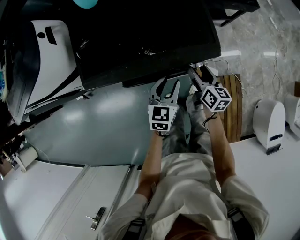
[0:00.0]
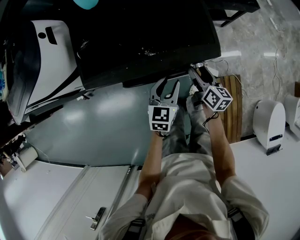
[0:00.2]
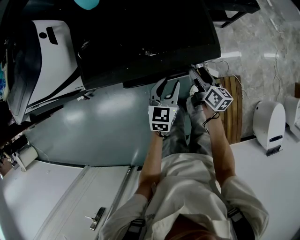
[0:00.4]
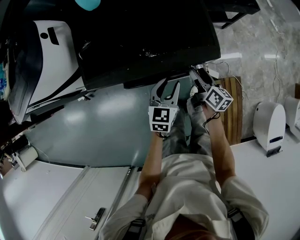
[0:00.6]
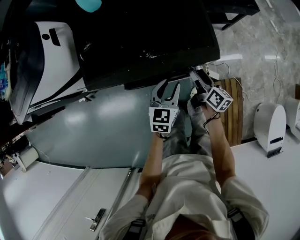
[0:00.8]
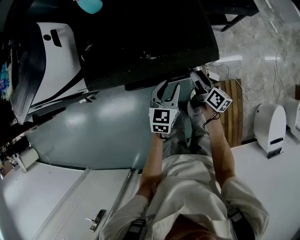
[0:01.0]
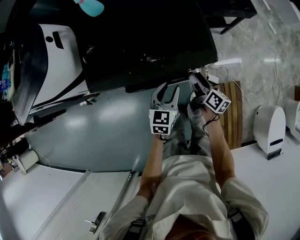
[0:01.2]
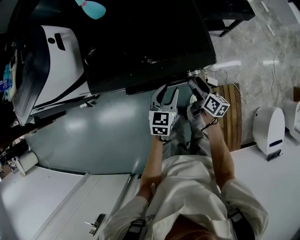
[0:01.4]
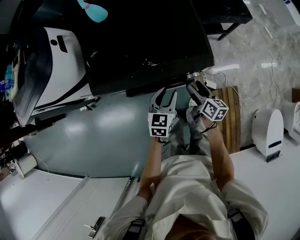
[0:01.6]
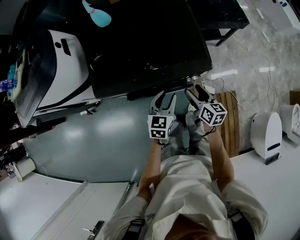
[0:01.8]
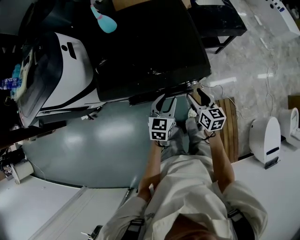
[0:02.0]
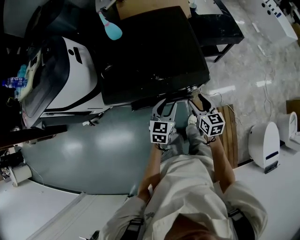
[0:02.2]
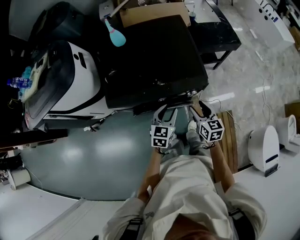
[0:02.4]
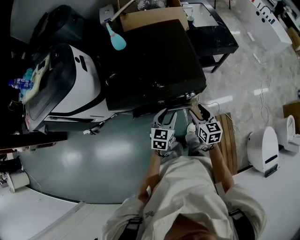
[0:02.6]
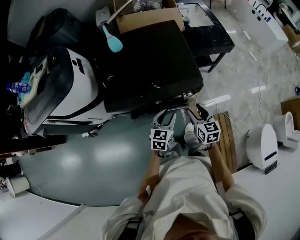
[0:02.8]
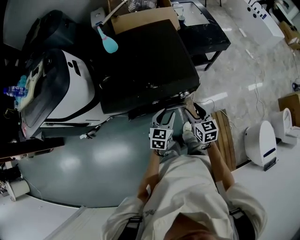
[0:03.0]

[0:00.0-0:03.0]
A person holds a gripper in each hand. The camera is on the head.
0:01.6 to 0:03.0: The right gripper heads upward, covering about 10 cm, and turns by about 40 degrees; the left gripper goes about 5 cm upward.

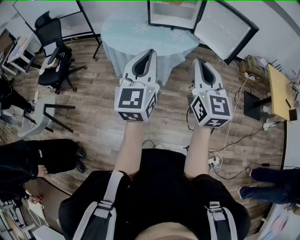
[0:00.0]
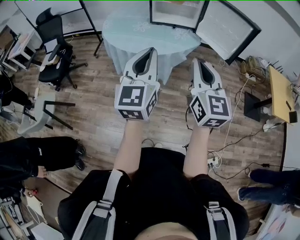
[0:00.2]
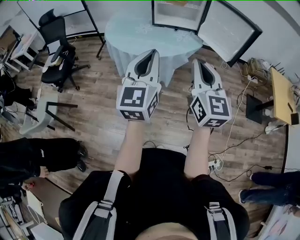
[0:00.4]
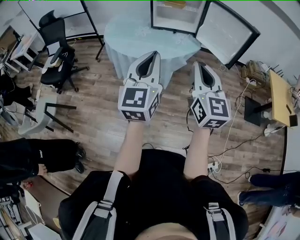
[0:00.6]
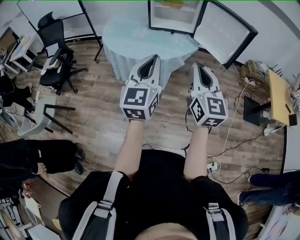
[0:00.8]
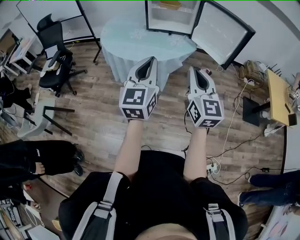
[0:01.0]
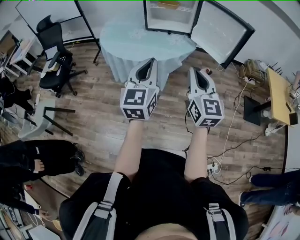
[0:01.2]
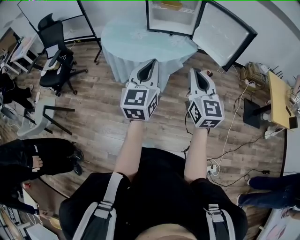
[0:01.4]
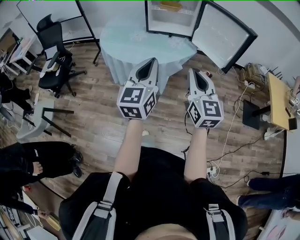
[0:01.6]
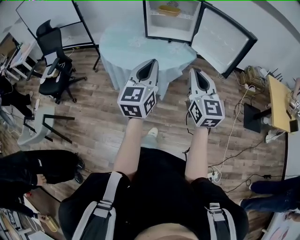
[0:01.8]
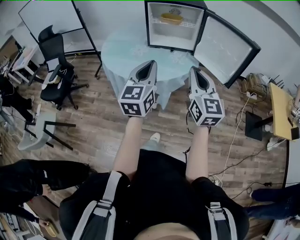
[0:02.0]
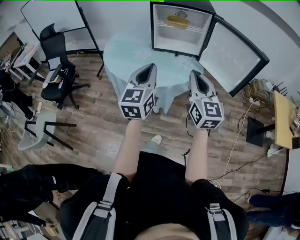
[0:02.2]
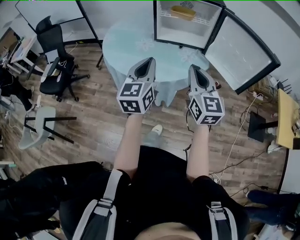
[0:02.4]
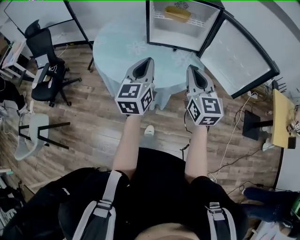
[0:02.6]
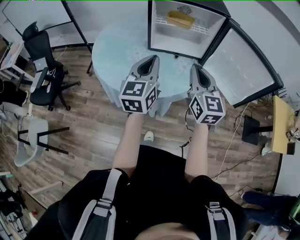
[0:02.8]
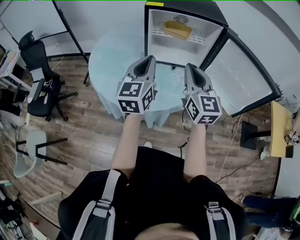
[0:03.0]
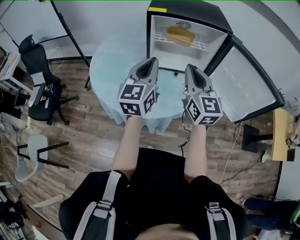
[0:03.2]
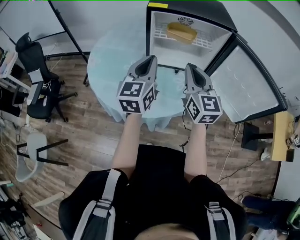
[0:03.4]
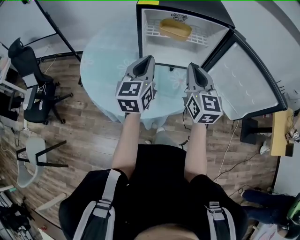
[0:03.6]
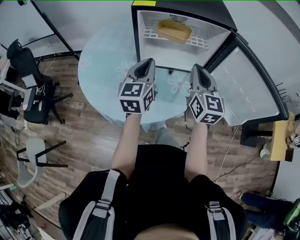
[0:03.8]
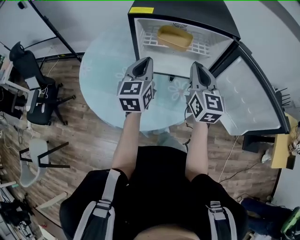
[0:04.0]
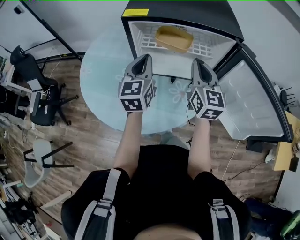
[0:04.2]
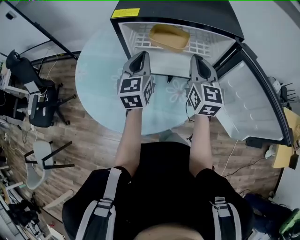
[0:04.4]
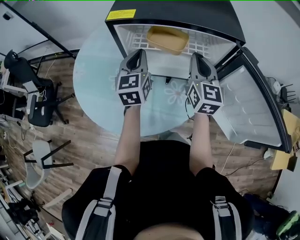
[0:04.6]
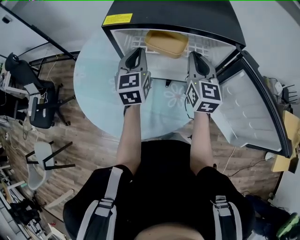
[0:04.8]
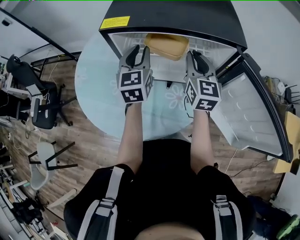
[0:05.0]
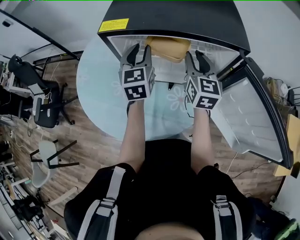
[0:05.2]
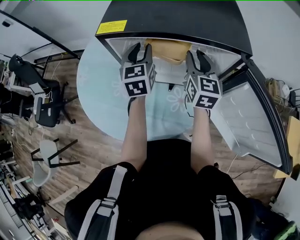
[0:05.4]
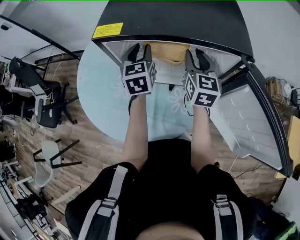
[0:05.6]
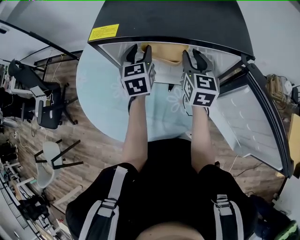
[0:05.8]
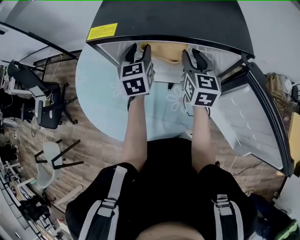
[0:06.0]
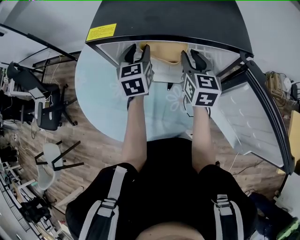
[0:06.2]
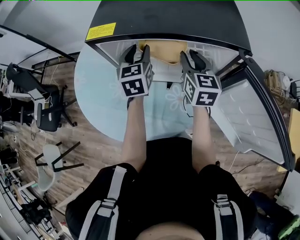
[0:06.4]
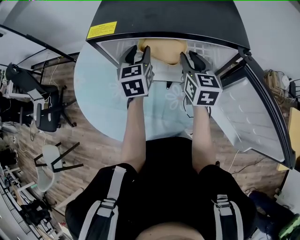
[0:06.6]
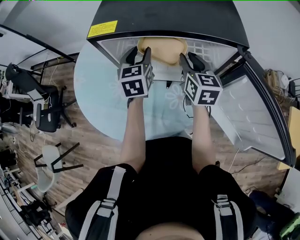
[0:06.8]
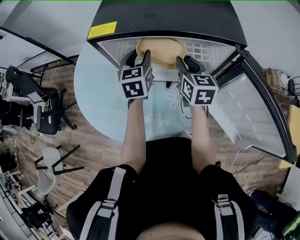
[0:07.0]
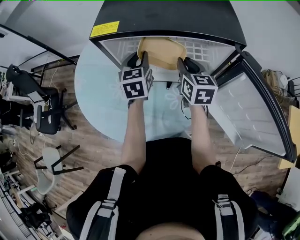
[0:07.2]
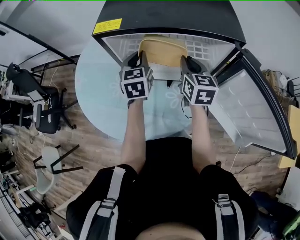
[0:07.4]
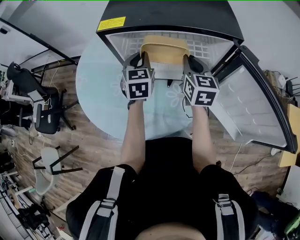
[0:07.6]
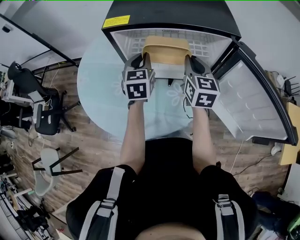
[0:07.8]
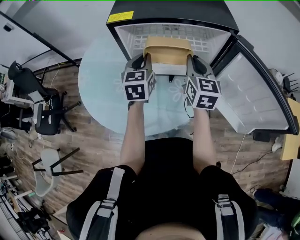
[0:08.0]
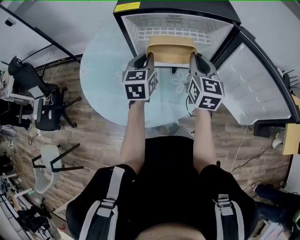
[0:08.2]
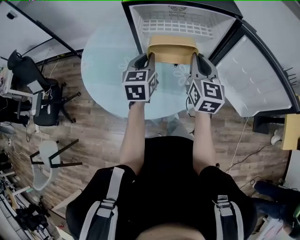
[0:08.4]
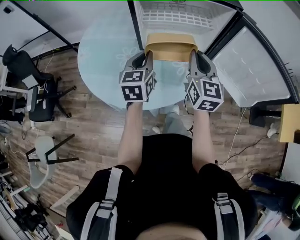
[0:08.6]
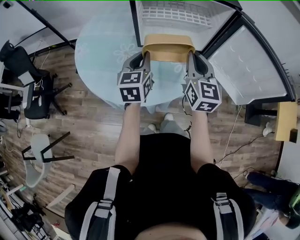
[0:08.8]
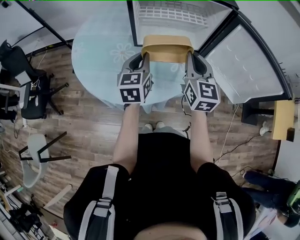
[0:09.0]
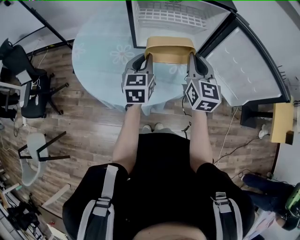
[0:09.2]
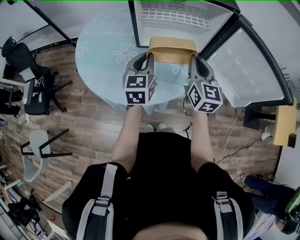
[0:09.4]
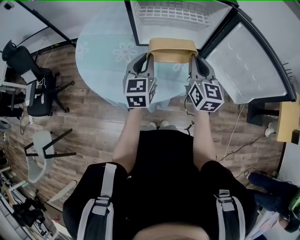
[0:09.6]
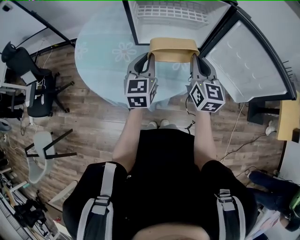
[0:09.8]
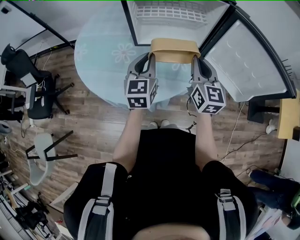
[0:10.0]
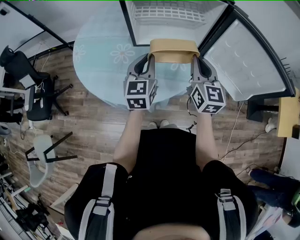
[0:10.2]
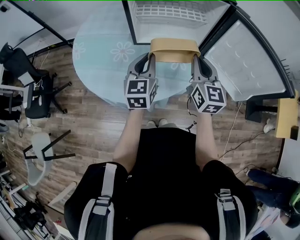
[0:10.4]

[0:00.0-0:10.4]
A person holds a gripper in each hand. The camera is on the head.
0:00.0 to 0:01.4: The left gripper shifts by some 10 cm. Meanwhile the right gripper shifts by some 5 cm.
0:01.4 to 0:03.0: Both grippers travel together forward, some 40 cm.
0:03.0 to 0:04.4: The two grippers go about 25 cm forward.
0:04.4 to 0:06.0: The right gripper goes some 10 cm forward and downward, and opens its fingers, while the left gripper is displaced forward by about 10 cm, and opens its fingers.
0:06.0 to 0:07.4: The left gripper closes; the right gripper closes.
0:07.4 to 0:09.0: Both grippers move backward, roughly 20 cm.
0:09.0 to 0:10.4: There are only small adjustments of the grippers.

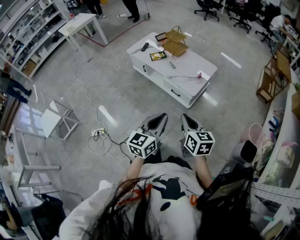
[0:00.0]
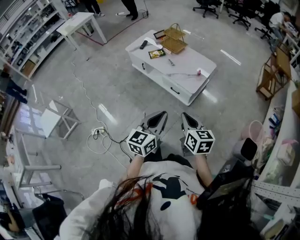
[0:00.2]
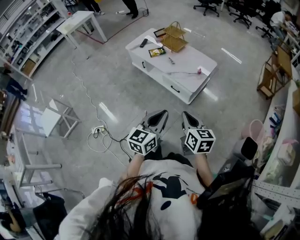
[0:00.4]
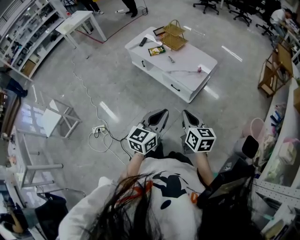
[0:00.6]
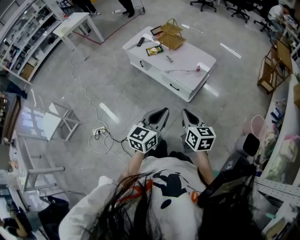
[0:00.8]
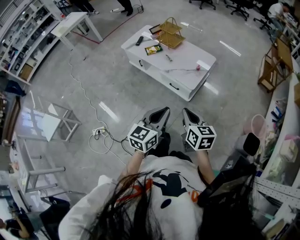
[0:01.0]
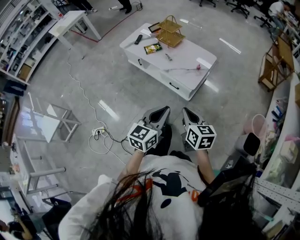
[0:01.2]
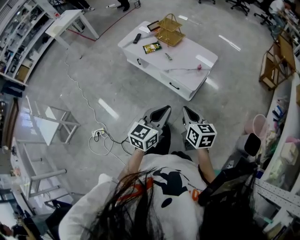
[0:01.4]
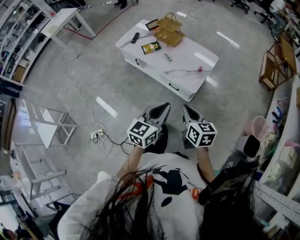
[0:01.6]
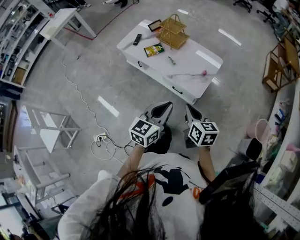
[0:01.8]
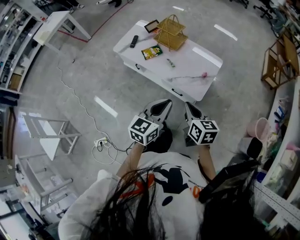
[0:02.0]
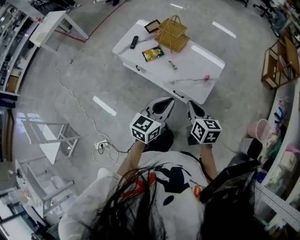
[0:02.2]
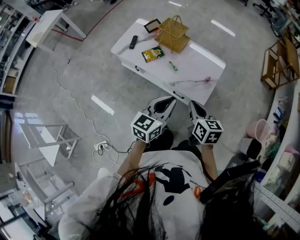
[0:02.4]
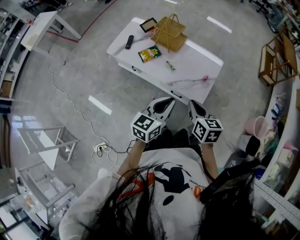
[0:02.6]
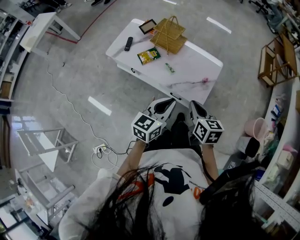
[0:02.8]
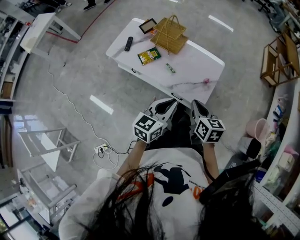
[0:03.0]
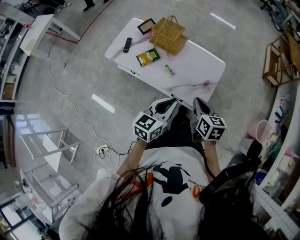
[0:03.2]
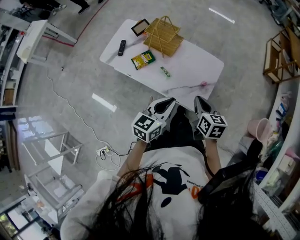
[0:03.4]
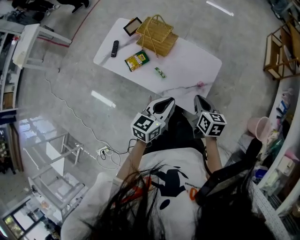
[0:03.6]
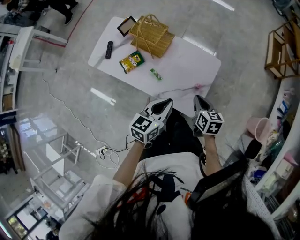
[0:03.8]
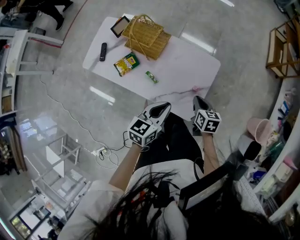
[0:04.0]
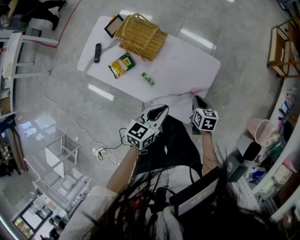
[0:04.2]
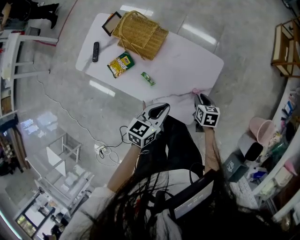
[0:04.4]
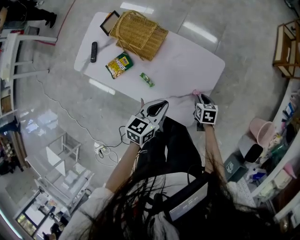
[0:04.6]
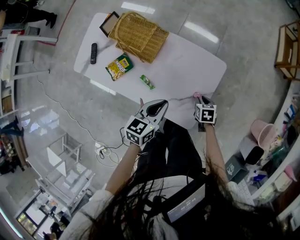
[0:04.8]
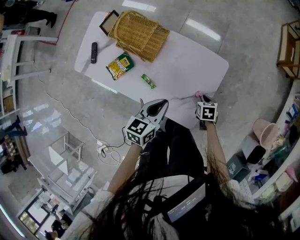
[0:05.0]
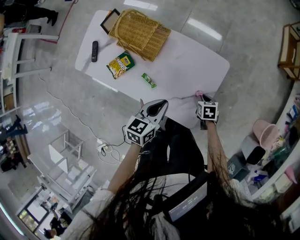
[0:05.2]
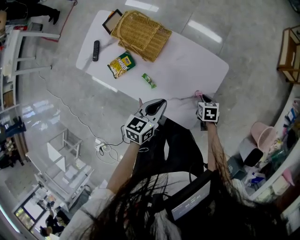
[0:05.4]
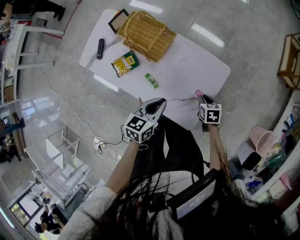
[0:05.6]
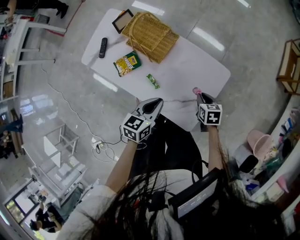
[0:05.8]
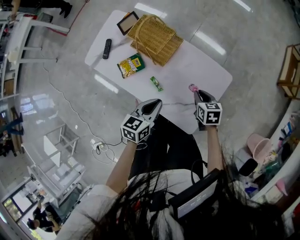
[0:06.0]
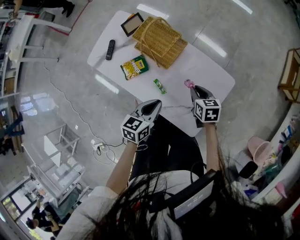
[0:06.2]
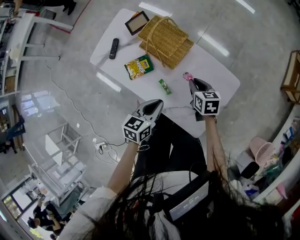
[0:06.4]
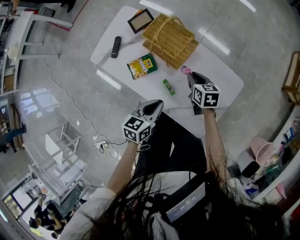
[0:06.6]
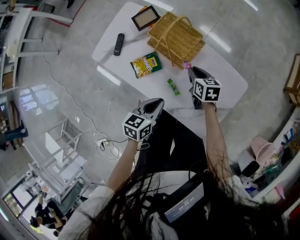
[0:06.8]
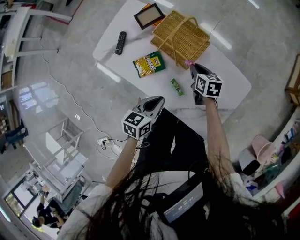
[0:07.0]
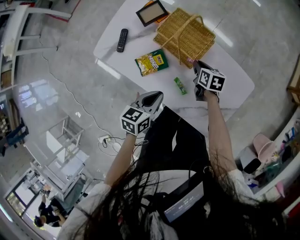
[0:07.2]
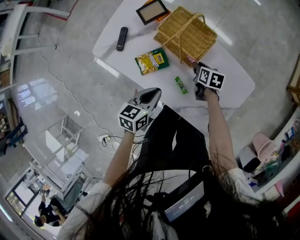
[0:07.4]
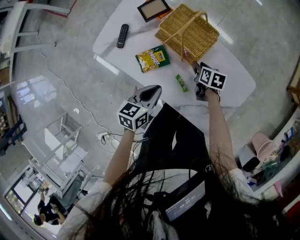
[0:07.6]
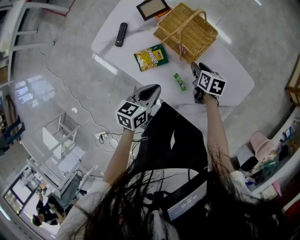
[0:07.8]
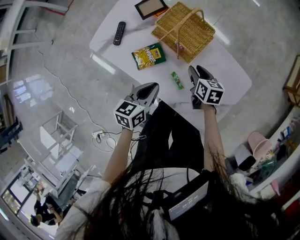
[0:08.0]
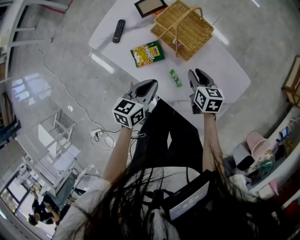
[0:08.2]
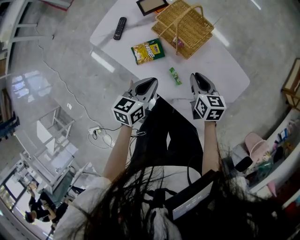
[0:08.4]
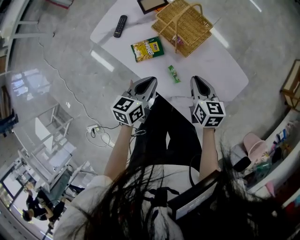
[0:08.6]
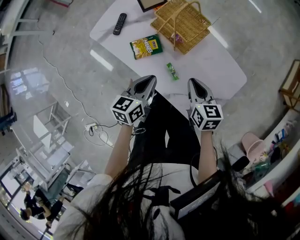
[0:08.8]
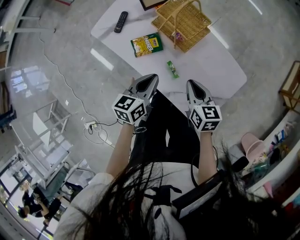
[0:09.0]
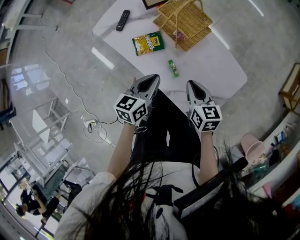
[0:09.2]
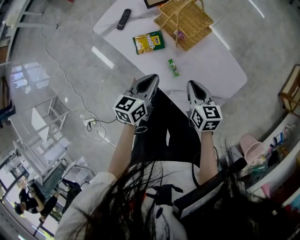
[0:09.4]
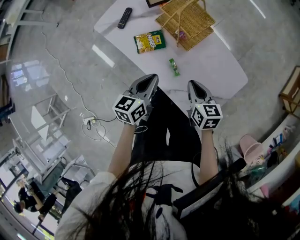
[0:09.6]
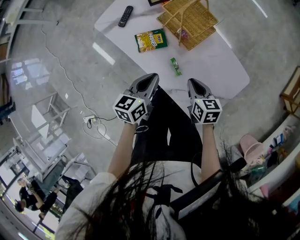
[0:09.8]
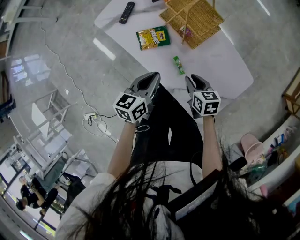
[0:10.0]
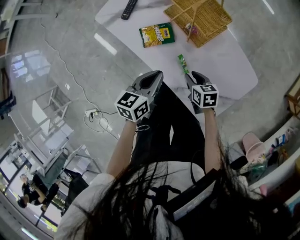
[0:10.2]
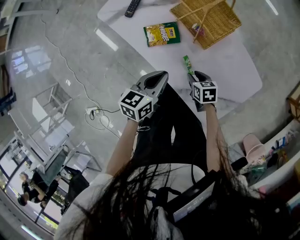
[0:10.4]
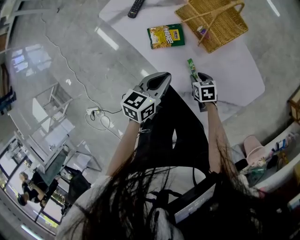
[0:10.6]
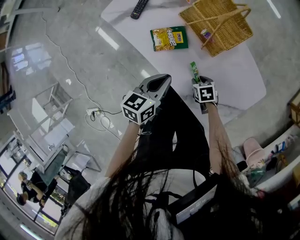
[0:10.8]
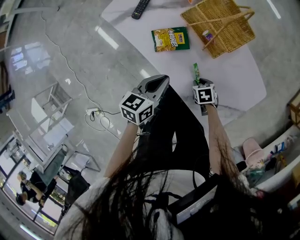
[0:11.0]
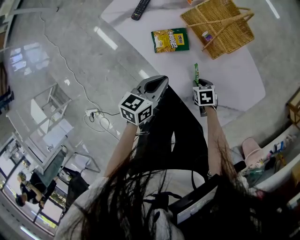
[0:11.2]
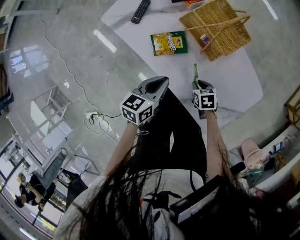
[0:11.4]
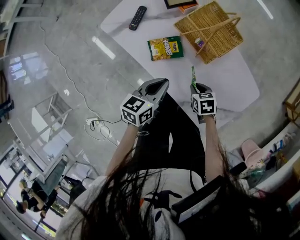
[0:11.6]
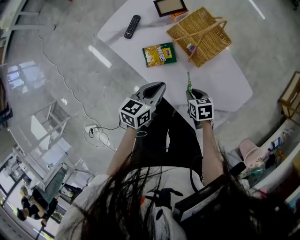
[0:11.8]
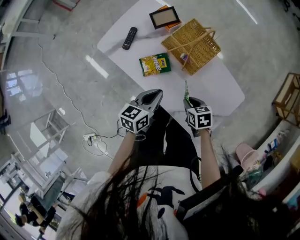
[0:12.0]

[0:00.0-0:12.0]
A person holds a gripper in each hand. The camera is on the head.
0:00.0 to 0:01.6: Both grippers move forward, roughly 15 cm.
0:01.6 to 0:03.0: The left gripper is displaced forward and to the left by roughly 25 cm, while the right gripper goes some 20 cm forward.
0:03.0 to 0:04.4: The left gripper moves forward and downward, about 30 cm. Meanwhile the right gripper moves downward, forward and to the right, about 40 cm, and turns by roughly 20 degrees.
0:04.4 to 0:06.0: The right gripper travels to the left and forward by about 10 cm, and moves roughly 10 cm downward and comes back, while the left gripper moves to the left, about 10 cm.
0:06.0 to 0:07.6: The left gripper is displaced to the left by approximately 15 cm. The right gripper goes some 25 cm to the left, forward and downward, and opens.
0:07.6 to 0:09.0: The right gripper is displaced upward and backward by approximately 25 cm, changes its angle by some 30 degrees, and closes; the left gripper shifts by approximately 5 cm.
0:09.0 to 0:10.4: The right gripper shifts roughly 20 cm downward, rotates roughly 30 degrees, and opens up. Meanwhile the left gripper moves downward, approximately 5 cm.
0:10.4 to 0:12.0: The right gripper travels upward by approximately 10 cm; the left gripper changes place by roughly 5 cm.
